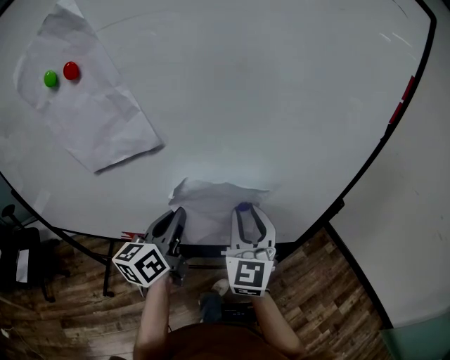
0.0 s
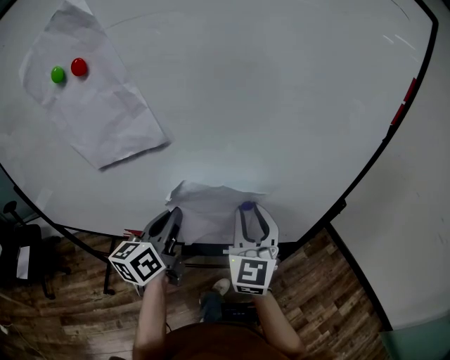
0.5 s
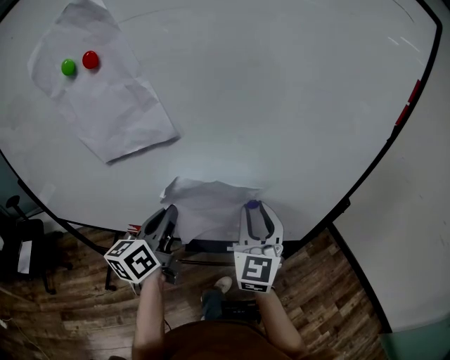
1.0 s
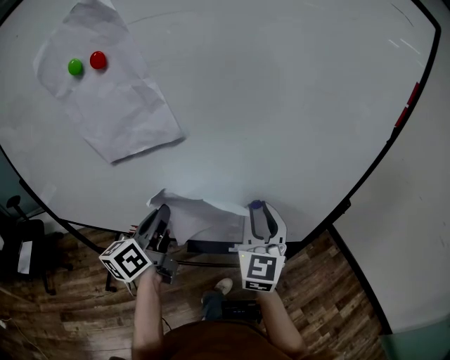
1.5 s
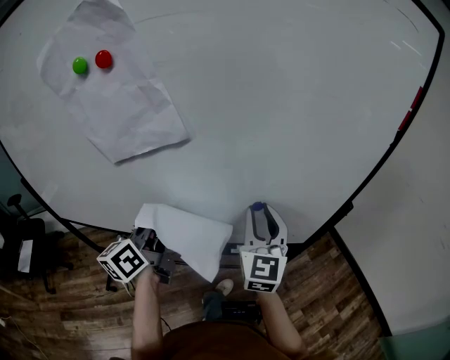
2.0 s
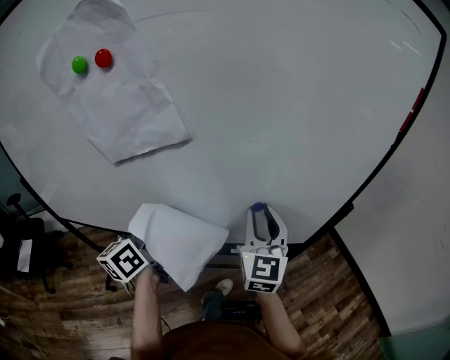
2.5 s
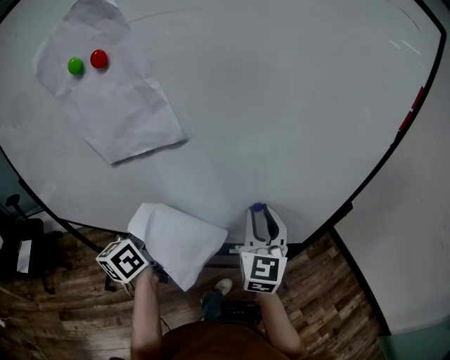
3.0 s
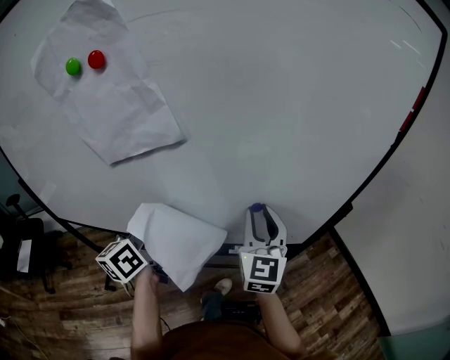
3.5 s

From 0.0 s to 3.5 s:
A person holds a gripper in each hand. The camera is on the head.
From 0.0 s to 2.0 s: The left gripper is displaced to the left by about 10 cm.
From 2.0 s to 3.5 s: Neither gripper changes place.

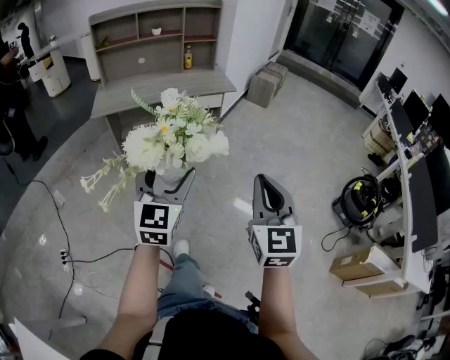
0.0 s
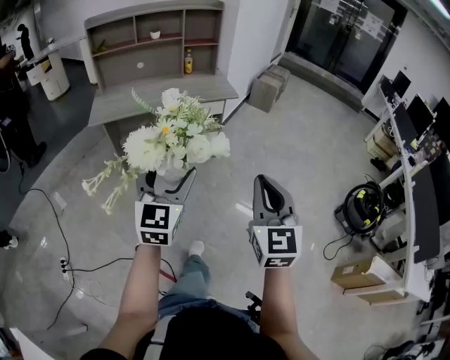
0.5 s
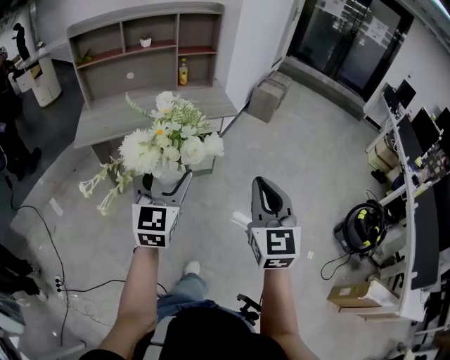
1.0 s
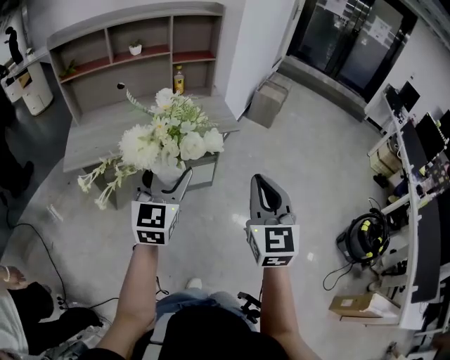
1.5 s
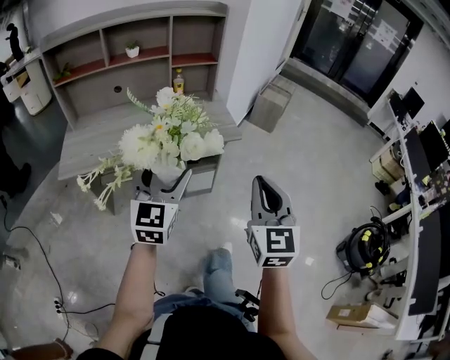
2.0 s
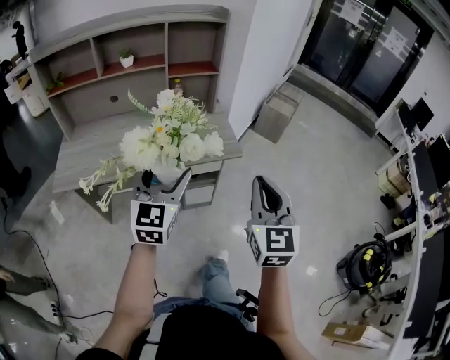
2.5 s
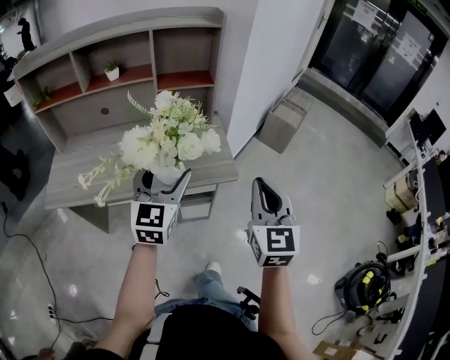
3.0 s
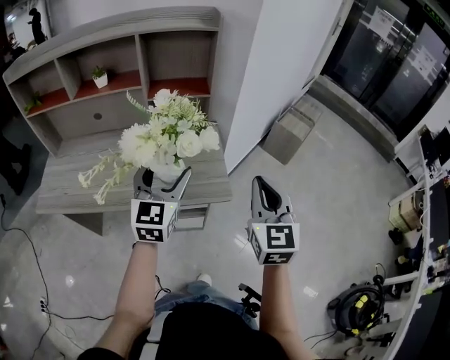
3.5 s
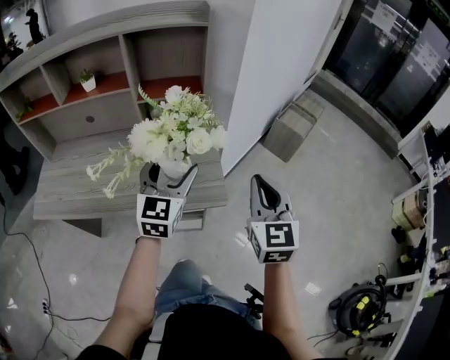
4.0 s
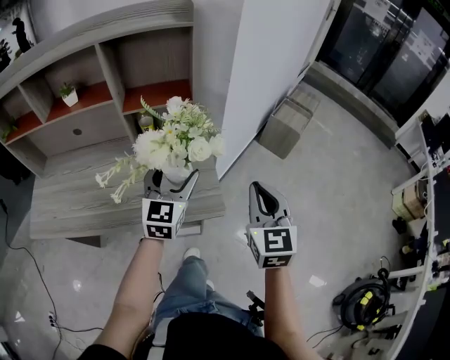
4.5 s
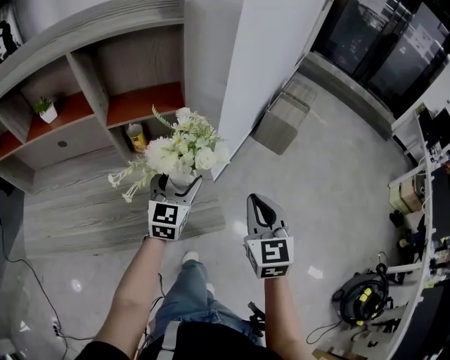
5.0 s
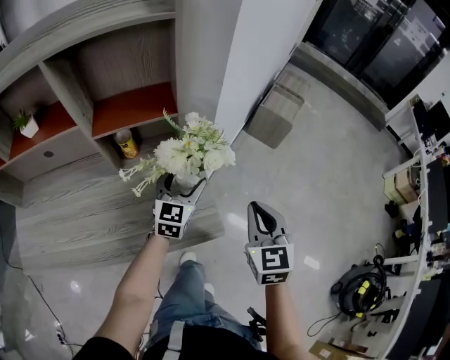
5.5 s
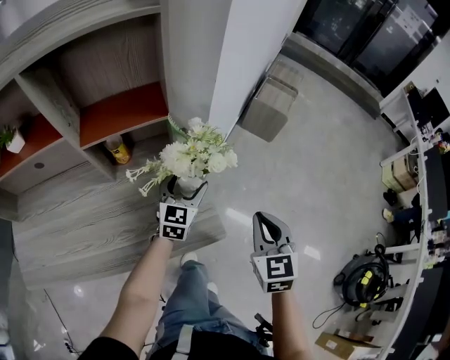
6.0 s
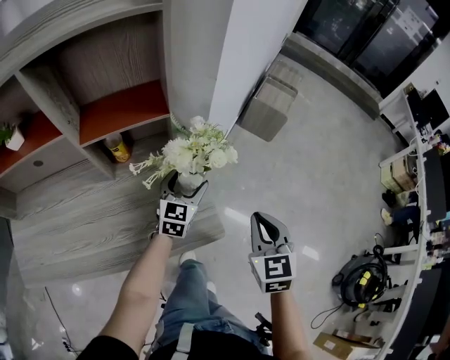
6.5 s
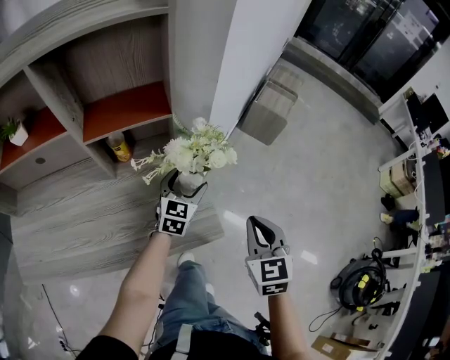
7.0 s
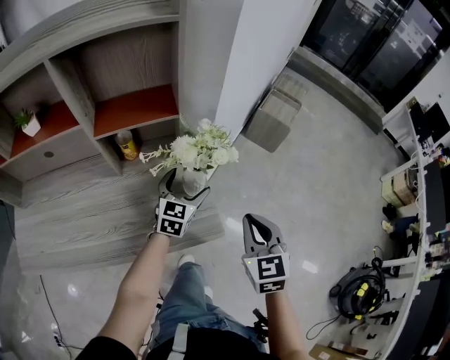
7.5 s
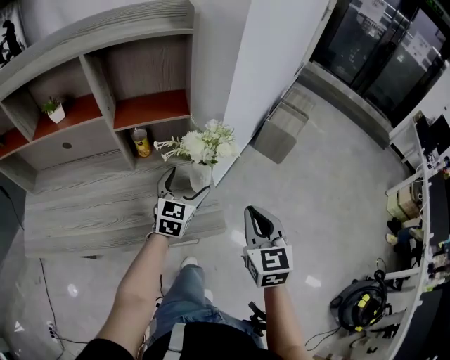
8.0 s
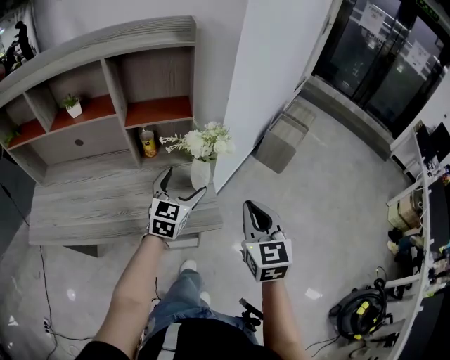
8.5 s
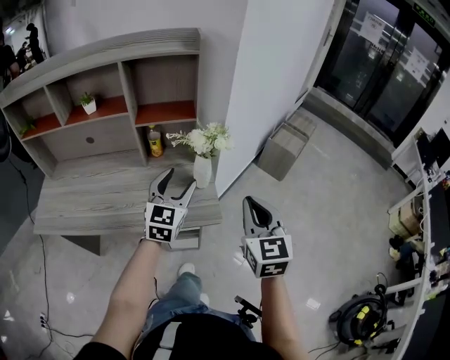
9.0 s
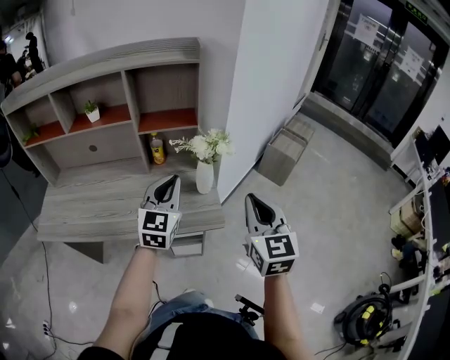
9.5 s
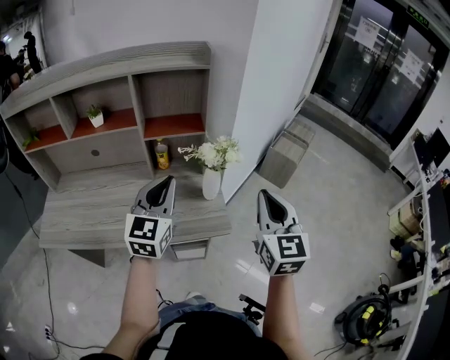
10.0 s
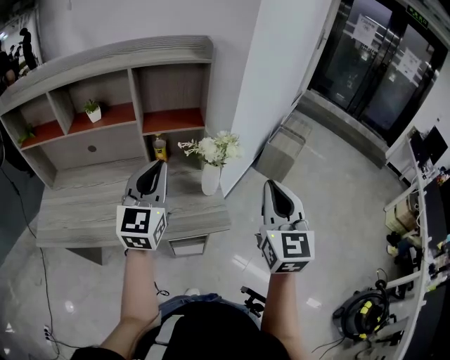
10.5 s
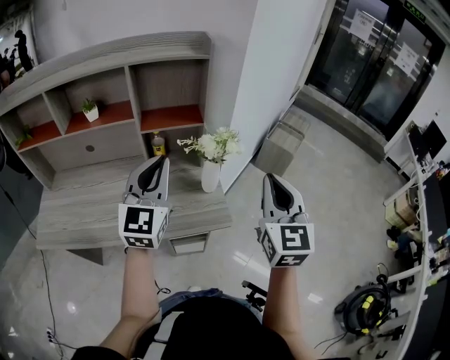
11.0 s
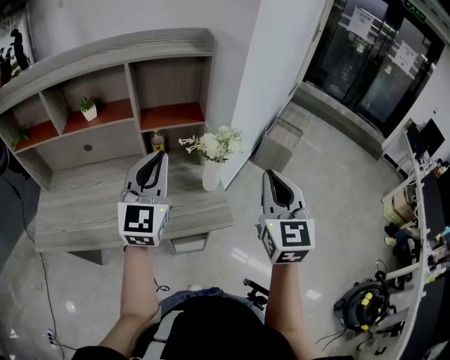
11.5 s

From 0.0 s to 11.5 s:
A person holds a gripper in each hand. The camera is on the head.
From 0.0 s to 2.0 s: The pair of grippers is taken forward, approximately 50 cm.
From 2.0 s to 4.0 s: The pair of grippers is taken forward, roughly 40 cm.
From 4.0 s to 6.0 s: The right gripper is displaced downward and forward by approximately 20 cm, and rotates some 20 degrees; the left gripper shifts roughly 30 cm forward and downward, and swivels some 20 degrees.
From 6.0 s to 7.5 s: The grippers stay close to where they were, moving slightly.
From 7.5 s to 9.5 s: The left gripper heads upward and backward, covering roughly 30 cm, turns by about 20 degrees, and closes up. The right gripper moves upward and backward, some 20 cm, and changes its angle by approximately 20 degrees.
From 9.5 s to 11.5 s: The left gripper heads upward and to the left, covering roughly 10 cm. Meanwhile the right gripper moves upward, about 5 cm.

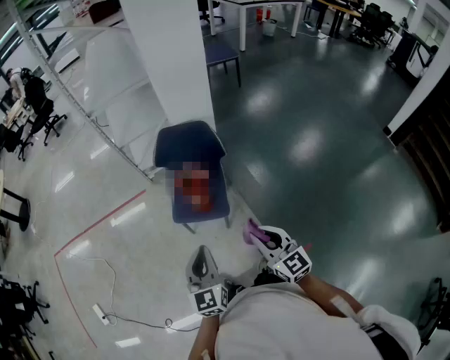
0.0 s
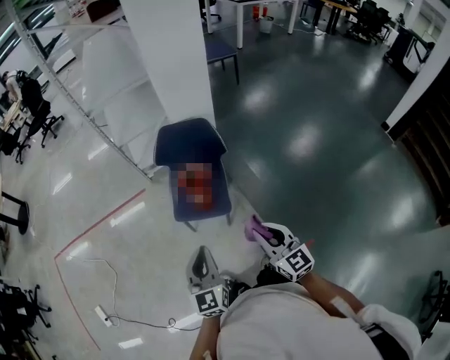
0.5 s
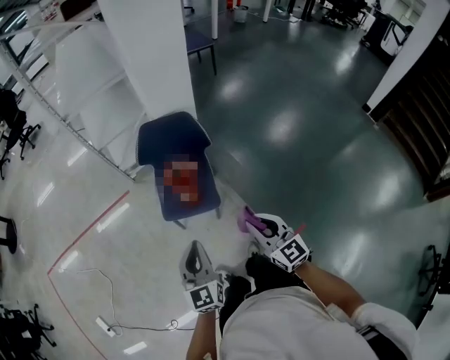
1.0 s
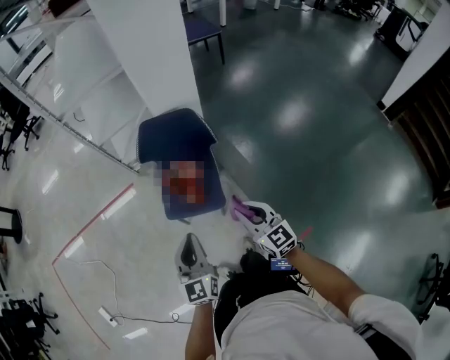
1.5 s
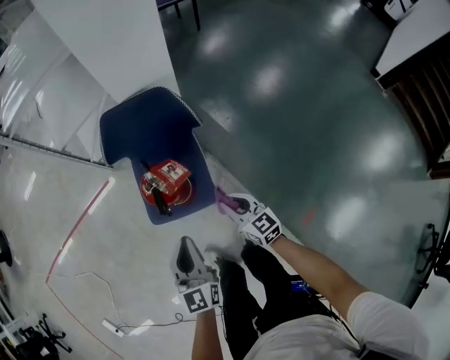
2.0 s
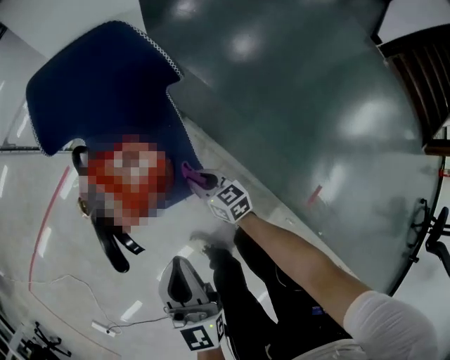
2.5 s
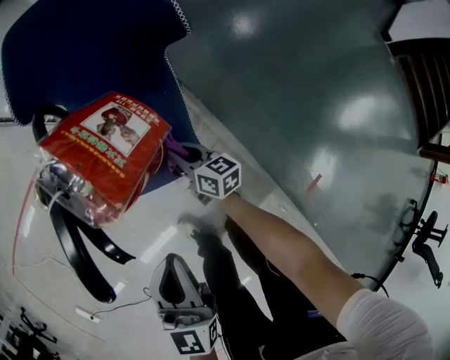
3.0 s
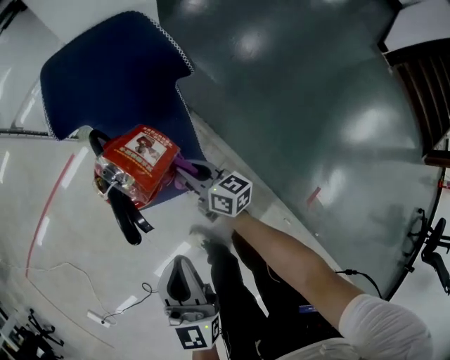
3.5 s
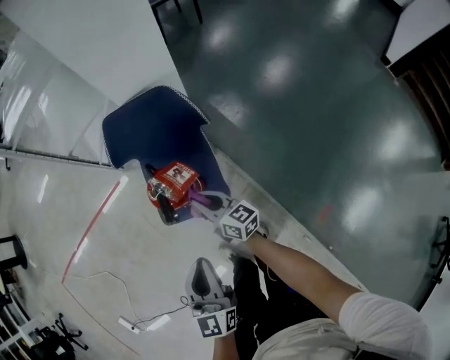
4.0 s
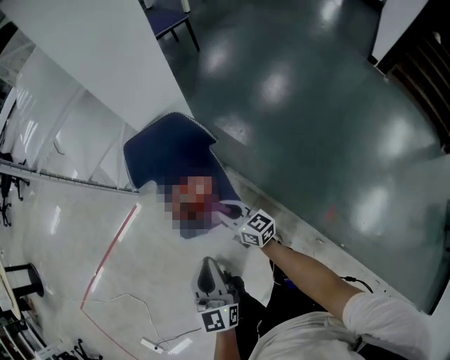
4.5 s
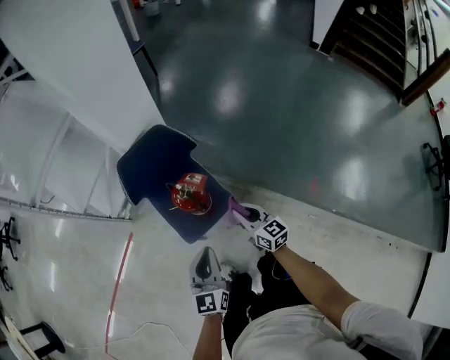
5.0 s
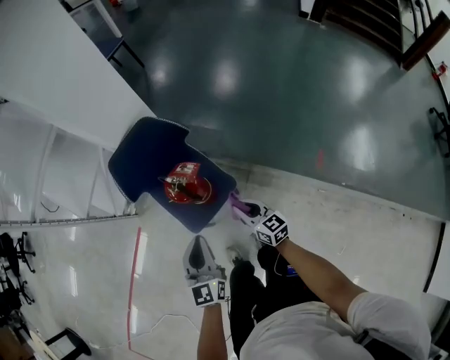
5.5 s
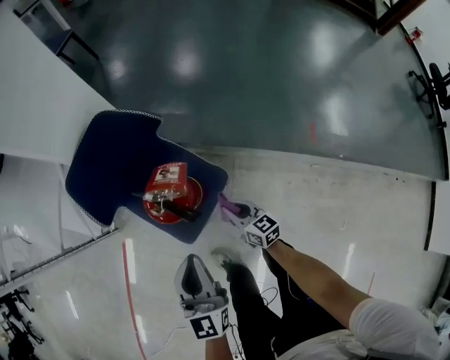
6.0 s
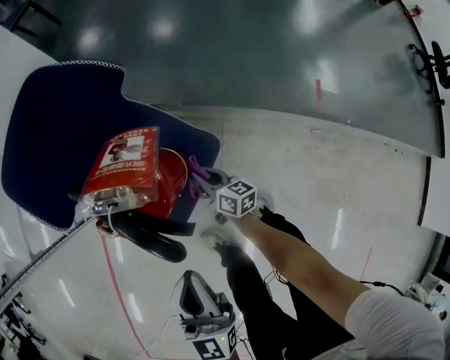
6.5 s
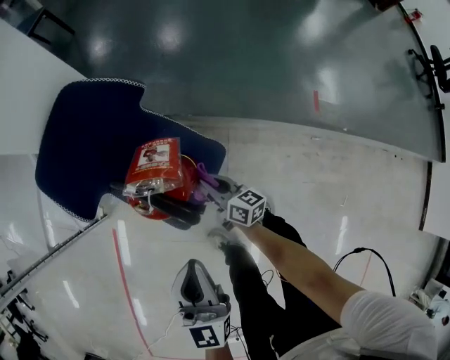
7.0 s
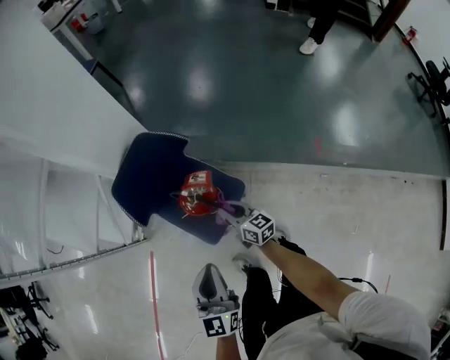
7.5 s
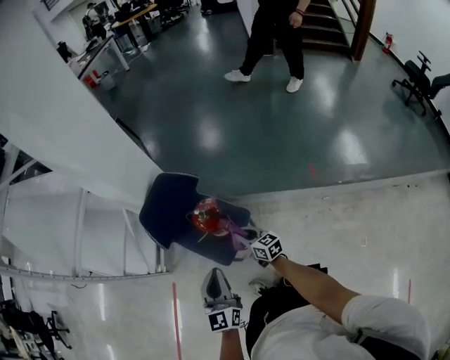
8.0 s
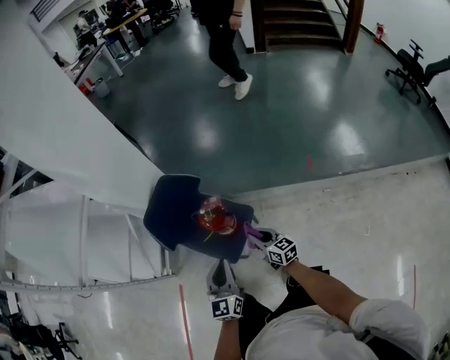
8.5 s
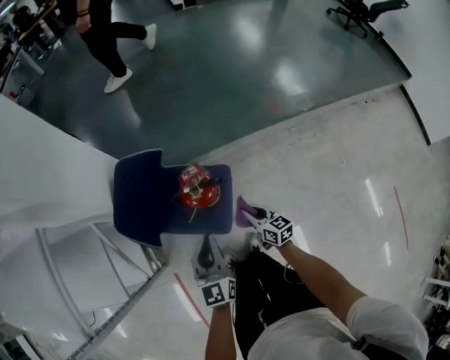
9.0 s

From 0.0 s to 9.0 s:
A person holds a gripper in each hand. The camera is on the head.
From 0.0 s to 2.0 s: The right gripper travels downward and forward by some 35 cm. The left gripper goes roughly 25 cm forward and downward.
From 2.0 s to 4.5 s: The right gripper shifts about 10 cm to the left and forward, moves roughly 30 cm downward and comes back, and rotates some 20 degrees, while the left gripper travels downward and back again, about 15 cm each way.
From 4.5 s to 7.0 s: The left gripper moves downward, some 10 cm, and rotates roughly 40 degrees. Meanwhile the right gripper goes up and down, approximately 35 cm each way, reversing 2 times, and changes its angle by about 50 degrees.
From 7.0 s to 9.0 s: The left gripper travels upward by approximately 10 cm, and turns by about 20 degrees. The right gripper heads upward, covering about 15 cm, and swivels some 30 degrees.

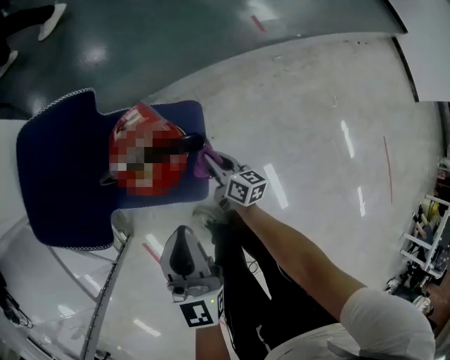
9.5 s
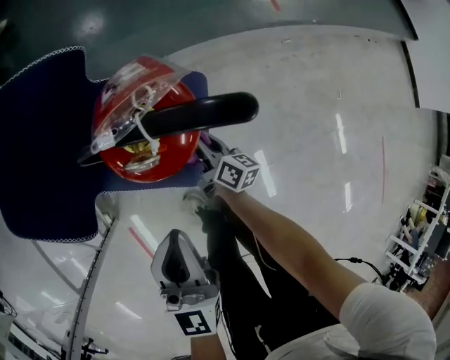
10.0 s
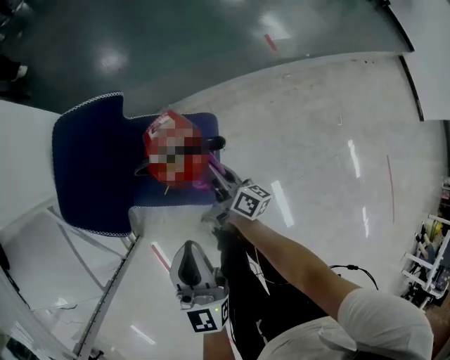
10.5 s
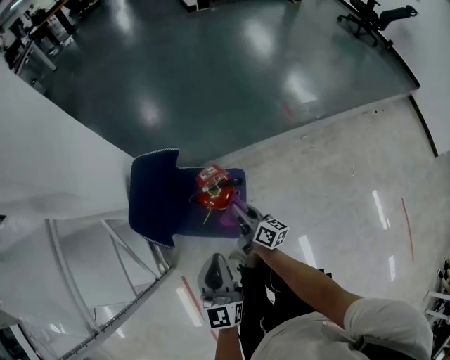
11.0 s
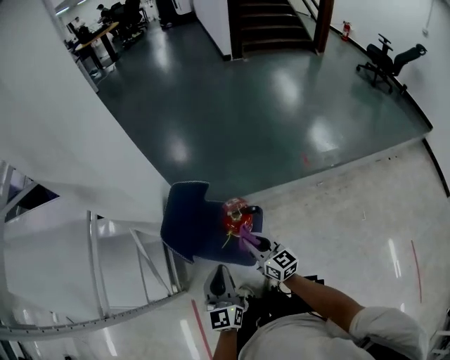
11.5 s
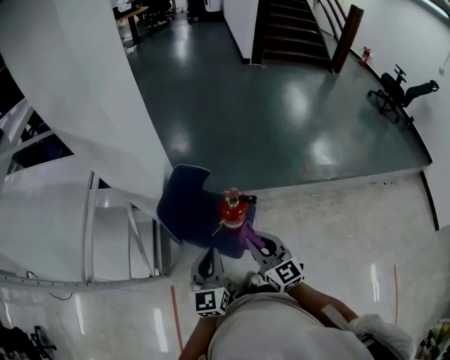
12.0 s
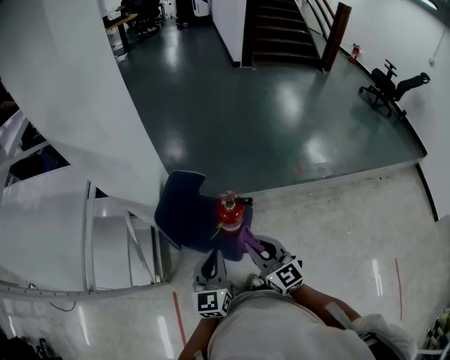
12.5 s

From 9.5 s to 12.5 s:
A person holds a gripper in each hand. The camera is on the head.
From 9.5 s to 11.0 s: The right gripper is displaced upward by about 25 cm; the left gripper is displaced upward by some 15 cm.
From 11.0 s to 12.5 s: The right gripper moves upward and backward, roughly 30 cm, and rolls counterclockwise, seen from behind, by some 50 degrees. The left gripper goes approximately 10 cm upward.
